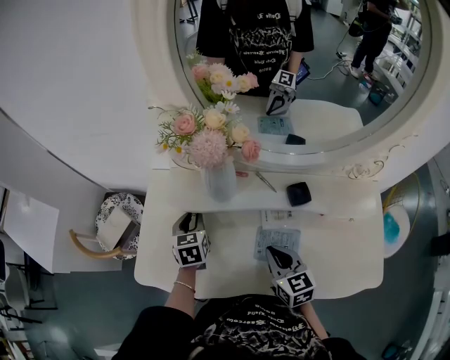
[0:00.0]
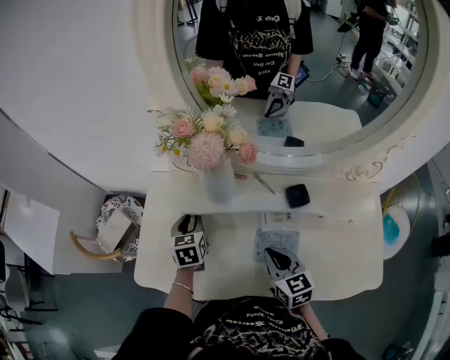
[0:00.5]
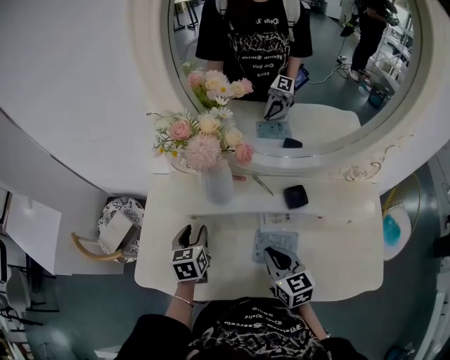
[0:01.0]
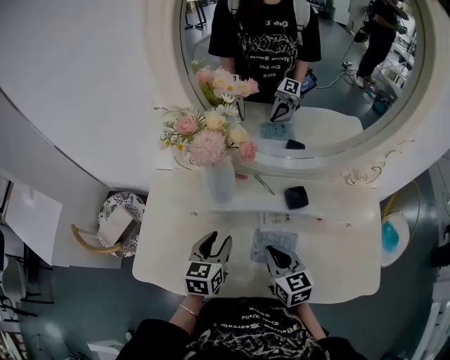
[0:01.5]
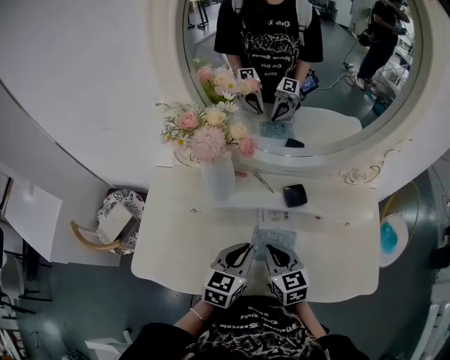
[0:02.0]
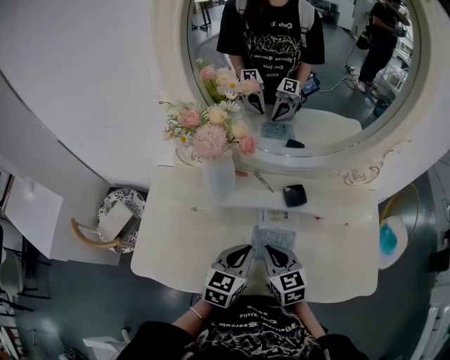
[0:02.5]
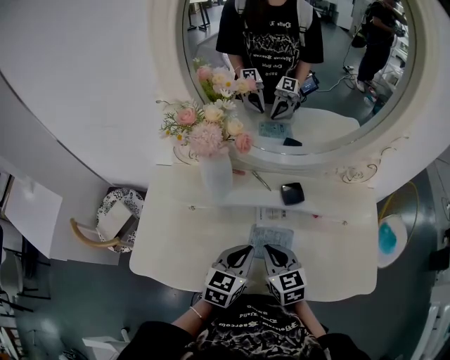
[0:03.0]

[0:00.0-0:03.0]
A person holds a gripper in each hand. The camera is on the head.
0:00.0 to 0:01.5: The left gripper goes about 15 cm backward and to the right, and turns by about 20 degrees.
0:01.5 to 0:03.0: The left gripper shifts some 10 cm to the right and backward, and closes.

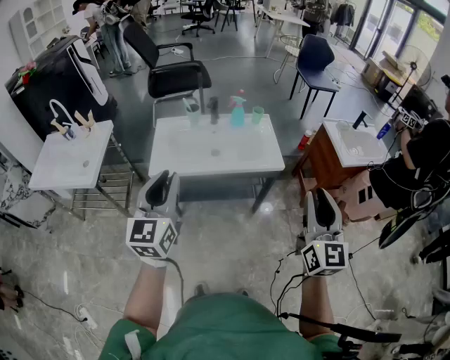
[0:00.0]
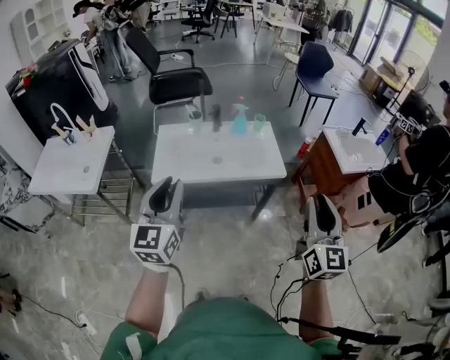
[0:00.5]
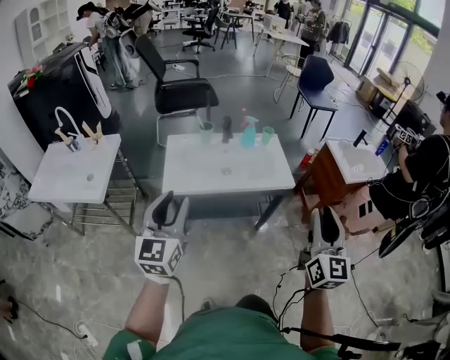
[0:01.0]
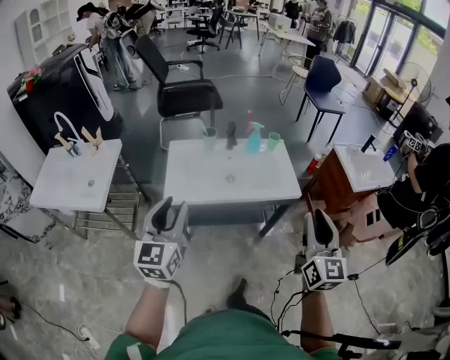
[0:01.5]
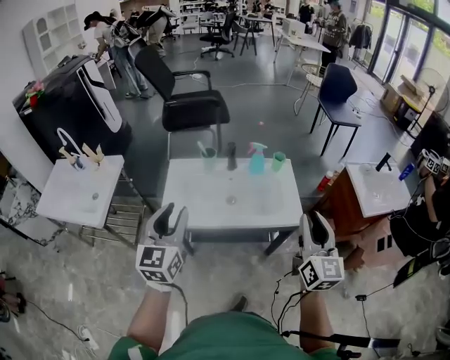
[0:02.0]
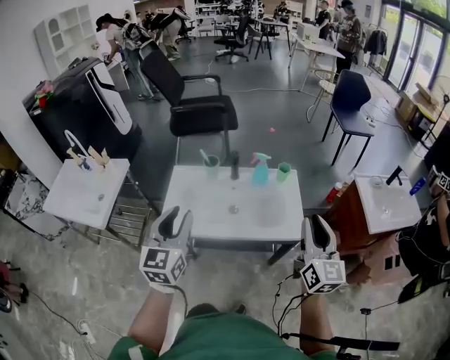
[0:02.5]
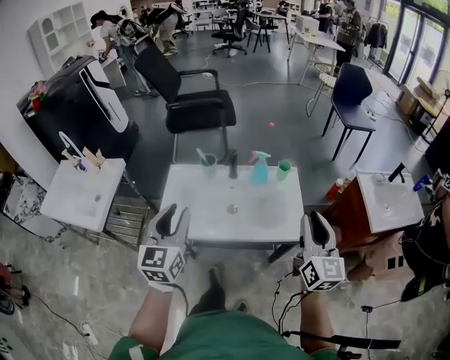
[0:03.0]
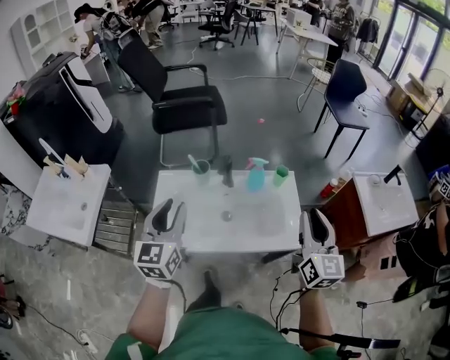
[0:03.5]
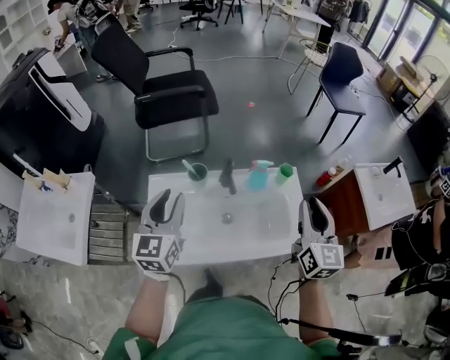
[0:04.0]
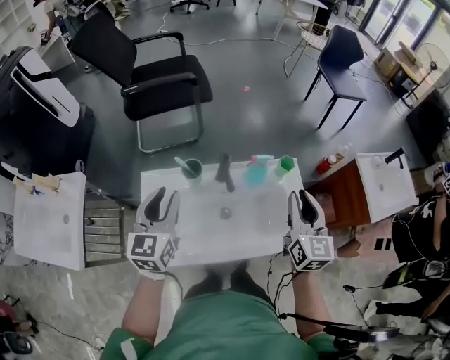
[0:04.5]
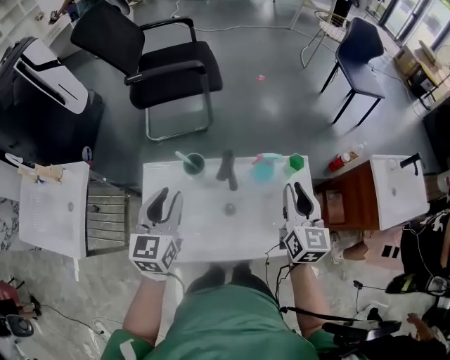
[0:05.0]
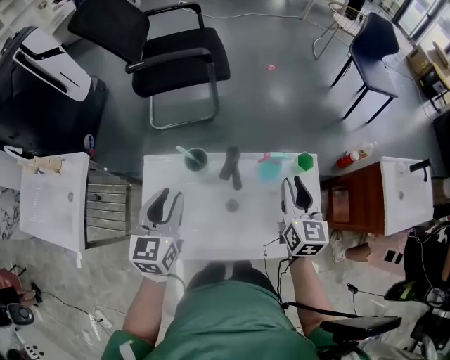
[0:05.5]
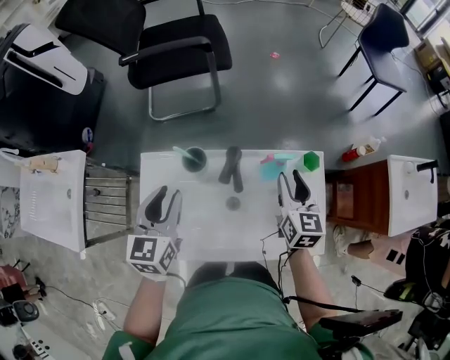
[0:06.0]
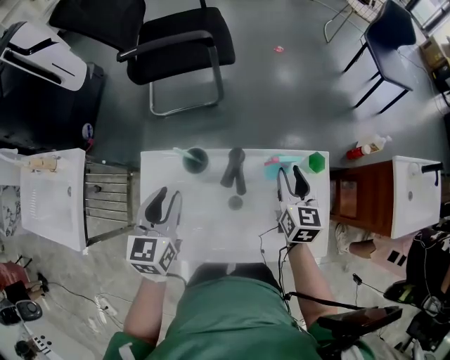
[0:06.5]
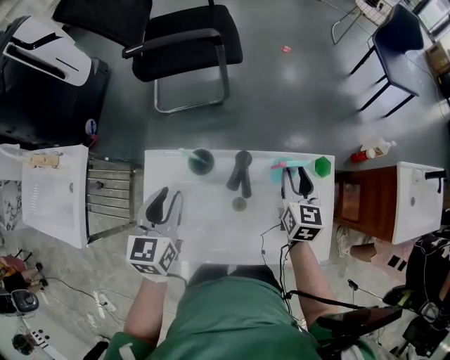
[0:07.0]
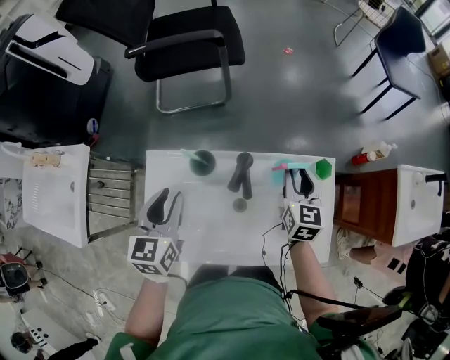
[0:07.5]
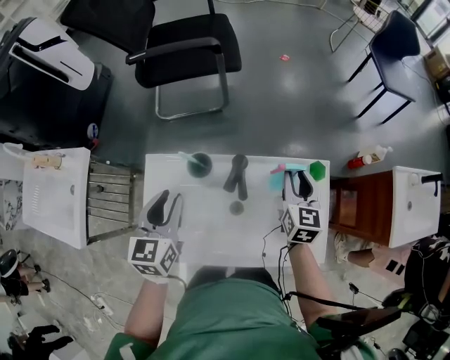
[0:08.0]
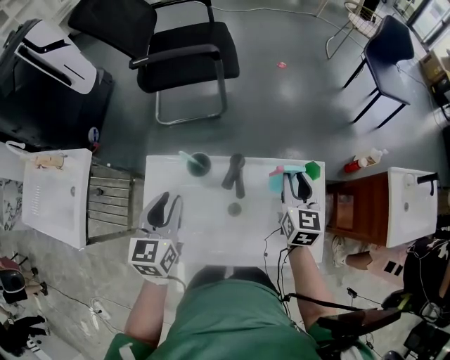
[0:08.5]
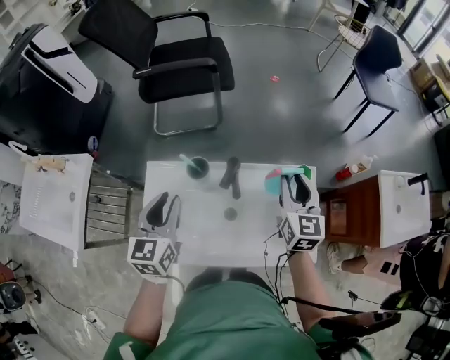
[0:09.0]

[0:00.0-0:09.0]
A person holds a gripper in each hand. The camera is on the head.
0:00.0 to 0:02.0: The grippers both shift forward by some 20 cm.
0:02.0 to 0:04.5: Both grippers move forward, approximately 35 cm.
0:04.5 to 0:07.0: The right gripper moves downward and forward, about 25 cm; the left gripper goes some 10 cm downward and forward.
0:07.0 to 0:09.0: The right gripper moves upward, some 10 cm; the left gripper shifts about 5 cm upward.

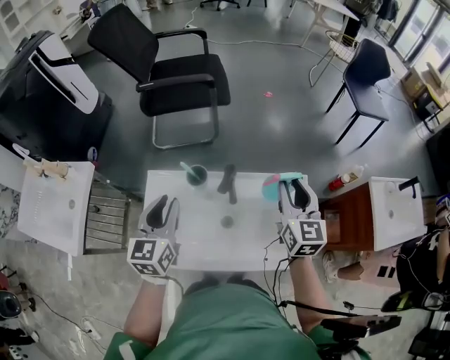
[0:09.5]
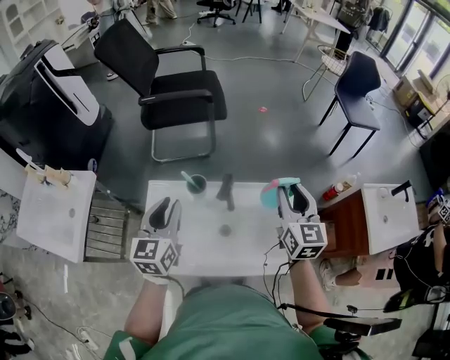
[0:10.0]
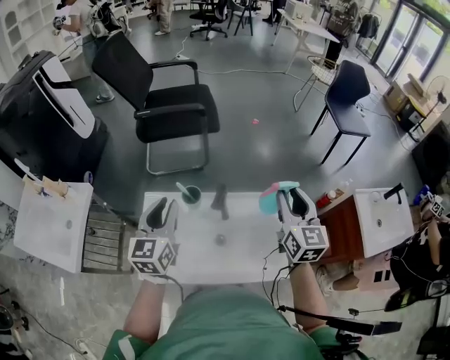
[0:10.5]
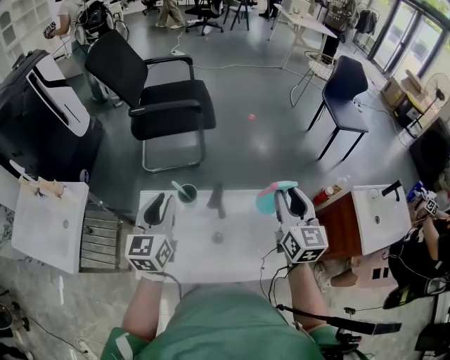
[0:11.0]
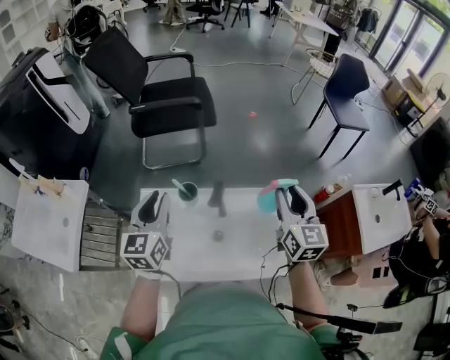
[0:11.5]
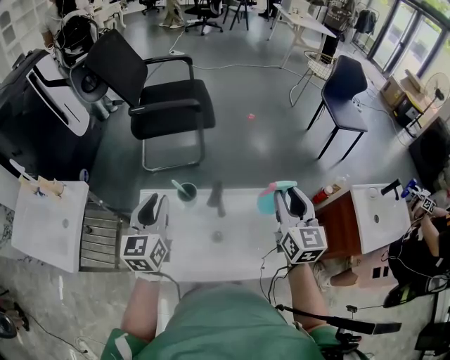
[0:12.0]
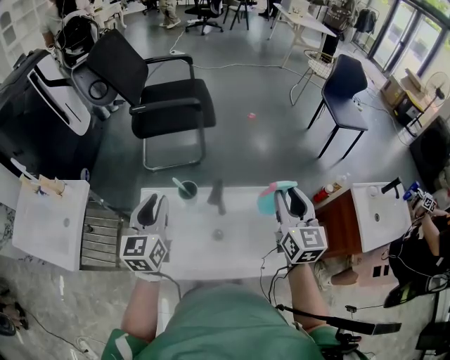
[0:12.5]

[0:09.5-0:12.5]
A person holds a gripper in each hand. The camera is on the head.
0:09.5 to 0:11.0: Both grippers travel together upward, some 5 cm.
0:11.0 to 0:12.5: There are only small adjustments of the grippers.

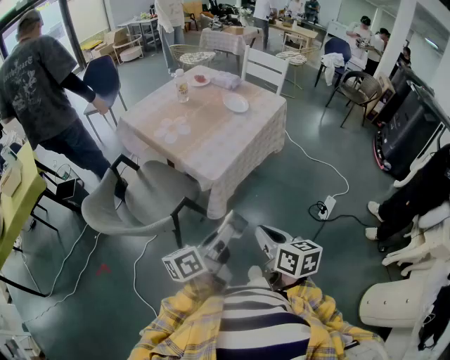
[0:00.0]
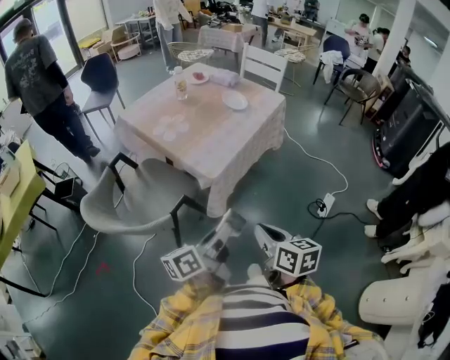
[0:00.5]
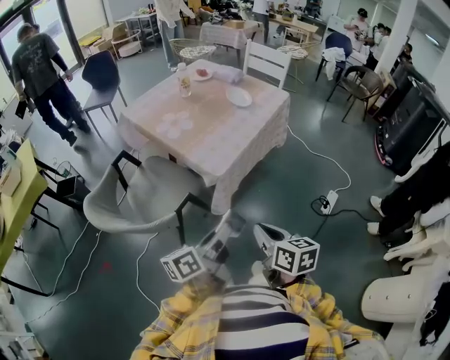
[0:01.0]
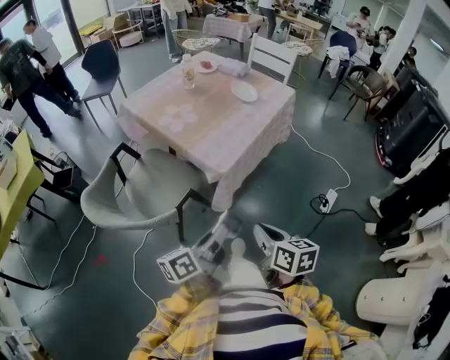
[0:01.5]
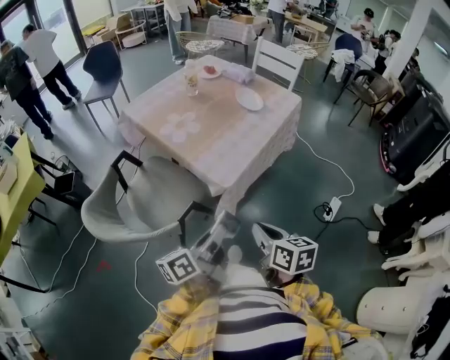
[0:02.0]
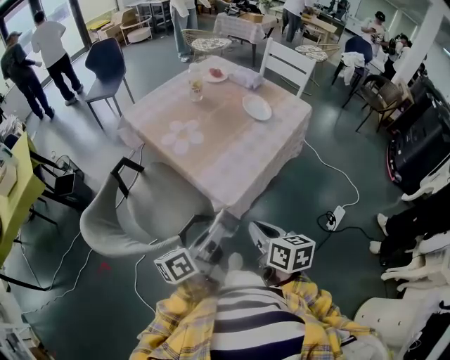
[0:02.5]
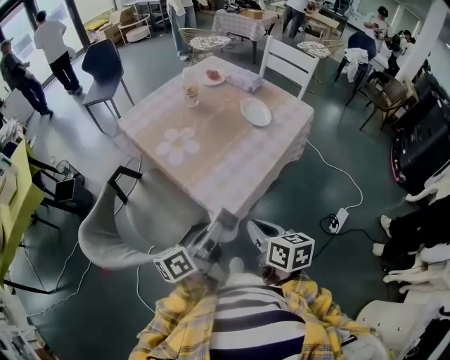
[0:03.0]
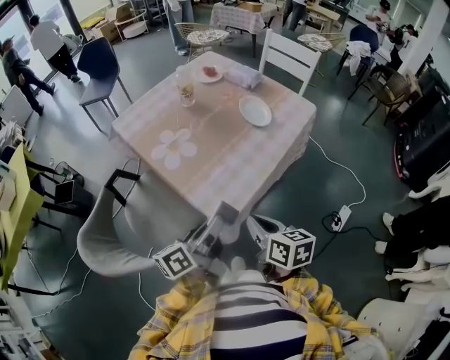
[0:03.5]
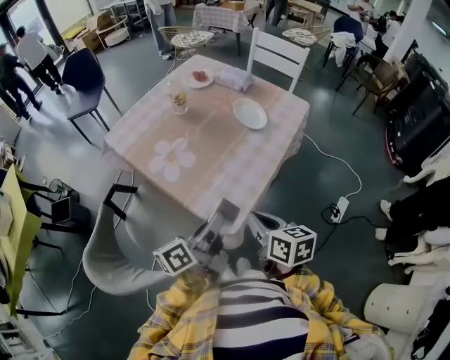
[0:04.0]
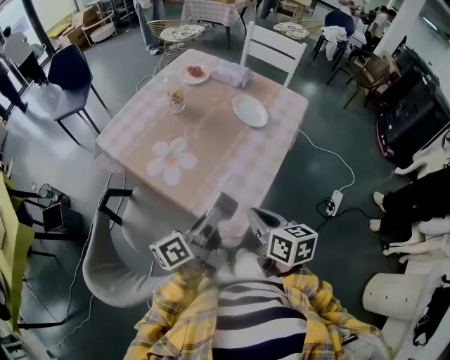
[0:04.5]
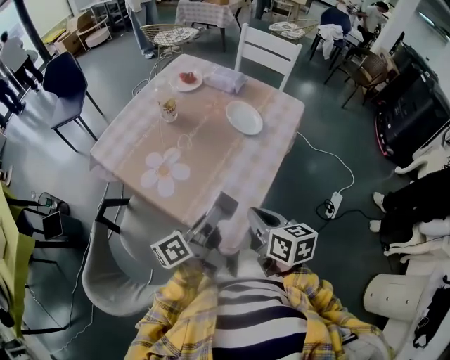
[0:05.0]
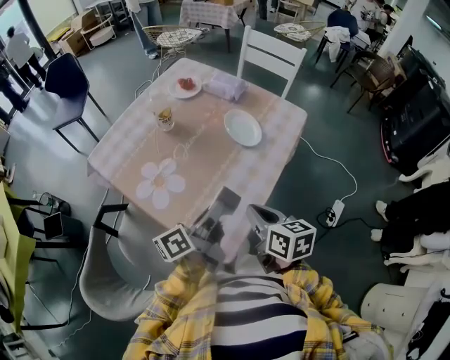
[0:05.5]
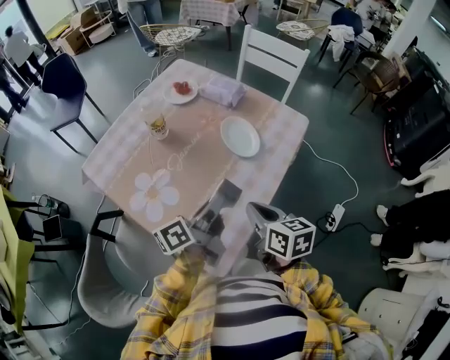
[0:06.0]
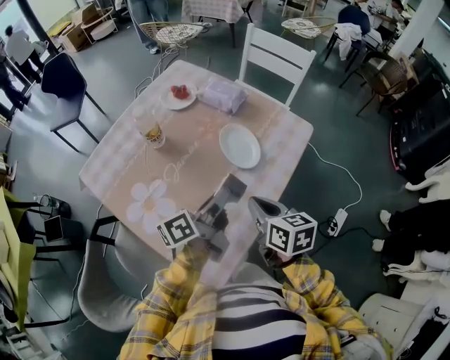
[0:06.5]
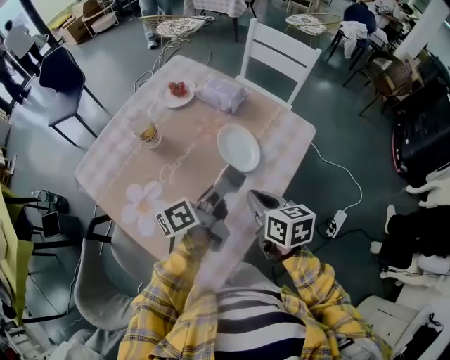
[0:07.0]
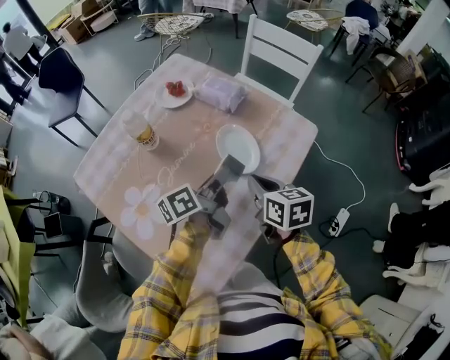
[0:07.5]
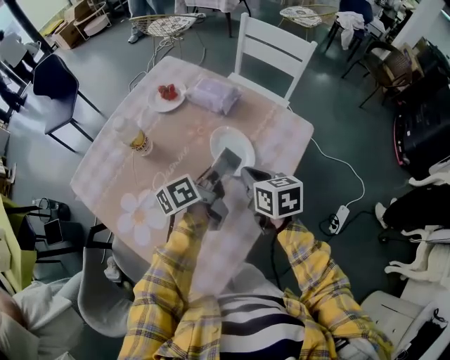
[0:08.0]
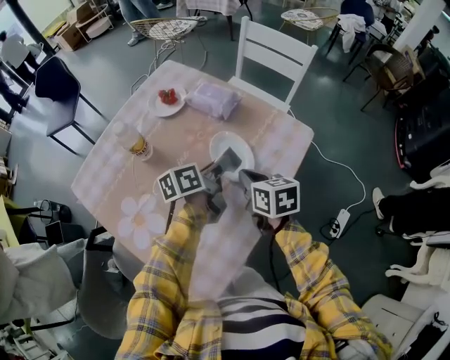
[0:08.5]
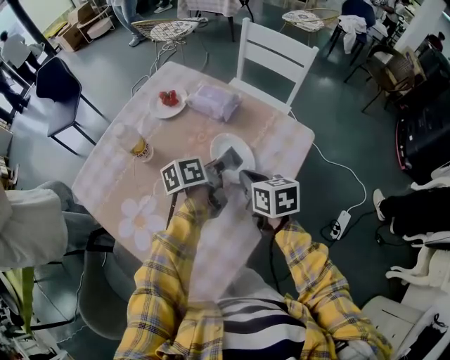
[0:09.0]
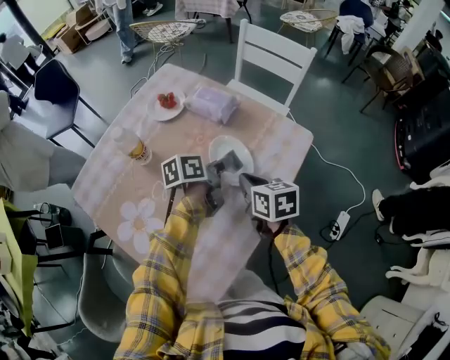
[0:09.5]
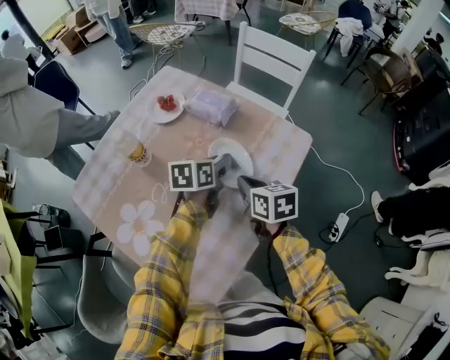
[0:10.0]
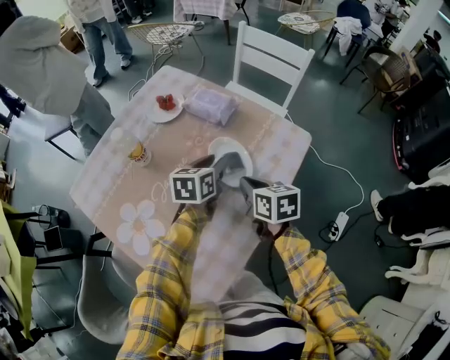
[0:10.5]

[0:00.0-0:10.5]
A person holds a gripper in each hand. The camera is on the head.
0:00.0 to 0:02.0: The right gripper moves forward and to the left, roughly 10 cm. Meanwhile the left gripper shifts some 10 cm to the left and forward.
0:02.0 to 0:04.0: The two grippers go approximately 20 cm forward.
0:04.0 to 0:06.5: Both grippers move forward, some 25 cm.
0:06.5 to 0:08.5: The grippers both shift forward by about 15 cm.
0:08.5 to 0:10.5: The left gripper turns by some 40 degrees, and opens.

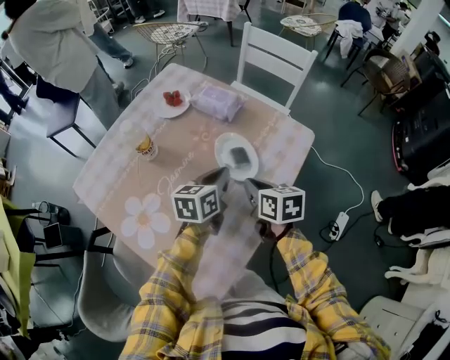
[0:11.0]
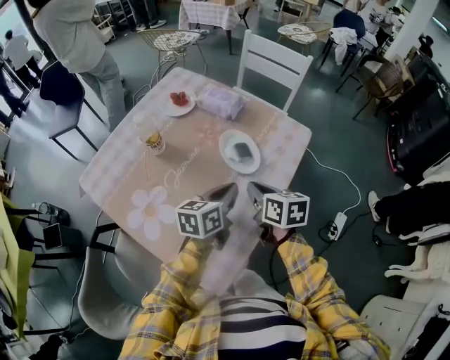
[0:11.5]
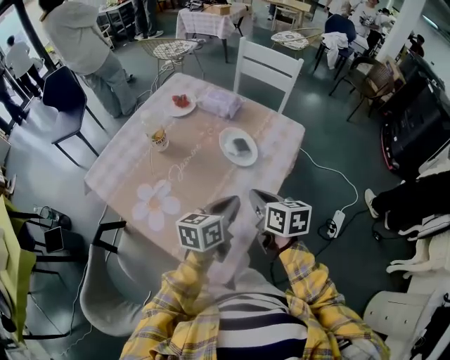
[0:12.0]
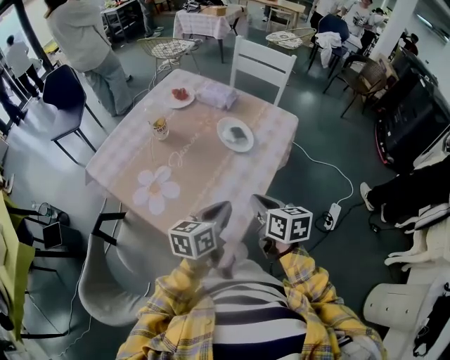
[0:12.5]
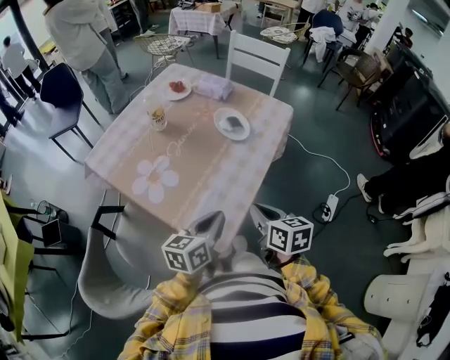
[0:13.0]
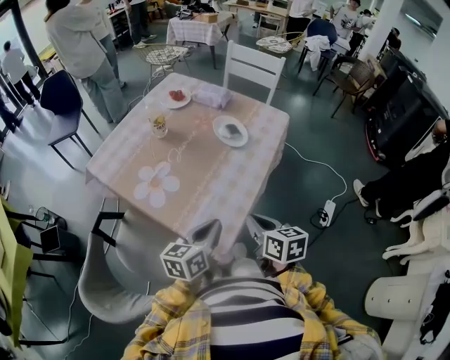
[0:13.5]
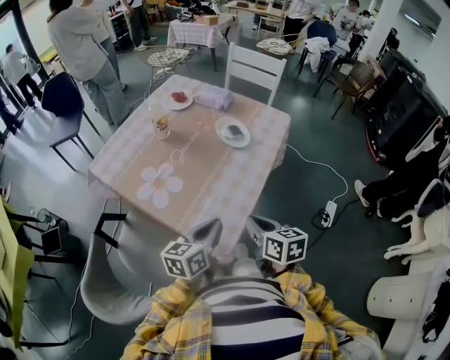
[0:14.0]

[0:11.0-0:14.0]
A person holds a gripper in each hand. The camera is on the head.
0:11.0 to 0:12.5: The two grippers go some 20 cm backward.
0:12.5 to 0:14.0: Both grippers travel together backward, roughly 10 cm.
